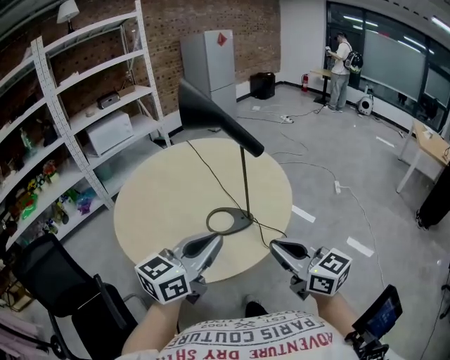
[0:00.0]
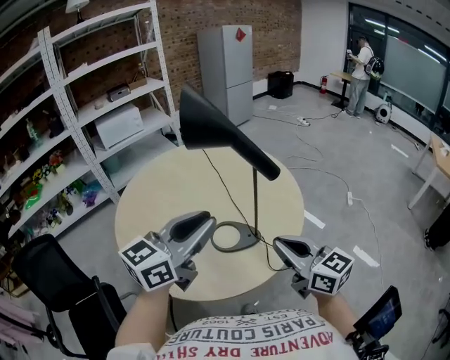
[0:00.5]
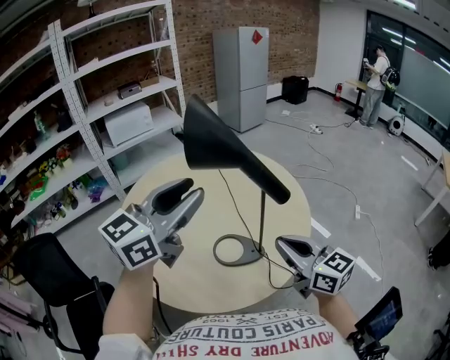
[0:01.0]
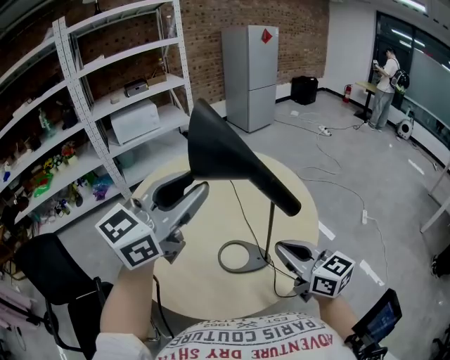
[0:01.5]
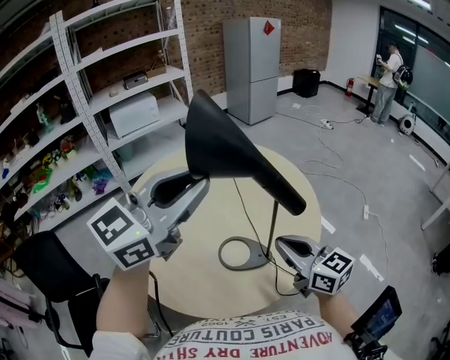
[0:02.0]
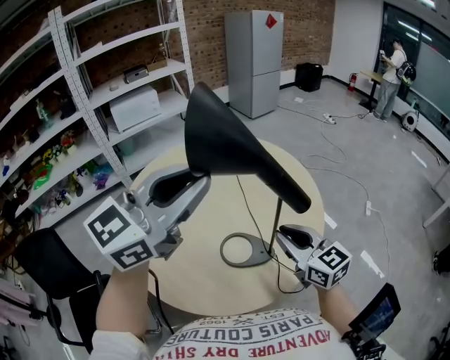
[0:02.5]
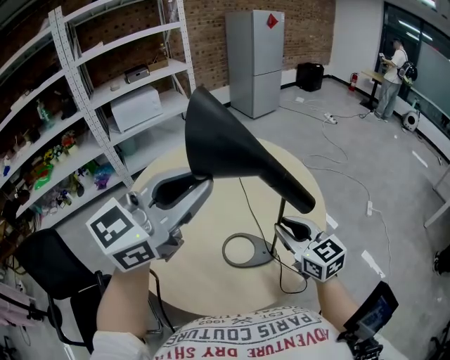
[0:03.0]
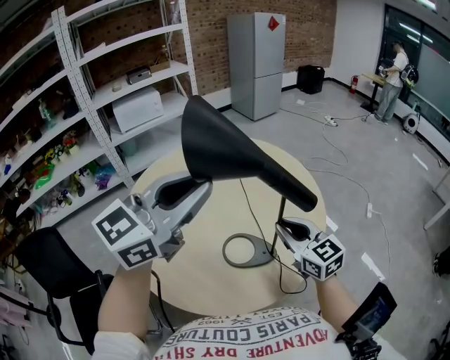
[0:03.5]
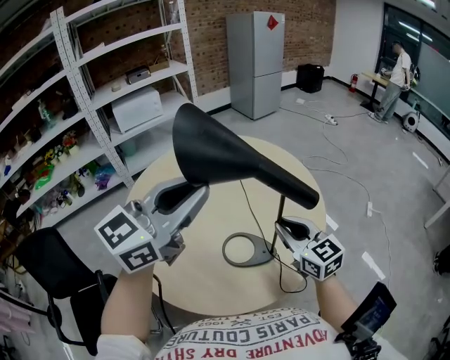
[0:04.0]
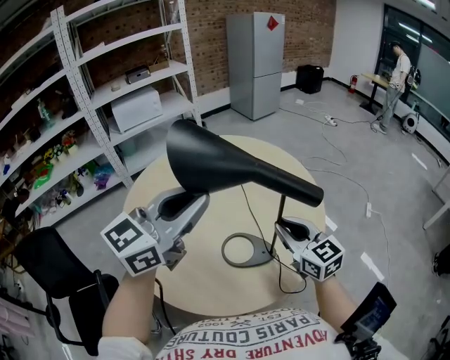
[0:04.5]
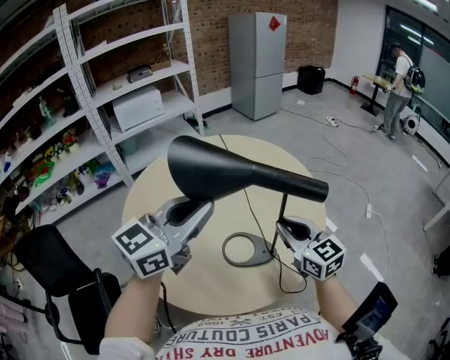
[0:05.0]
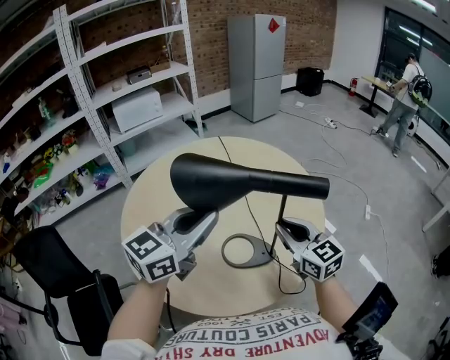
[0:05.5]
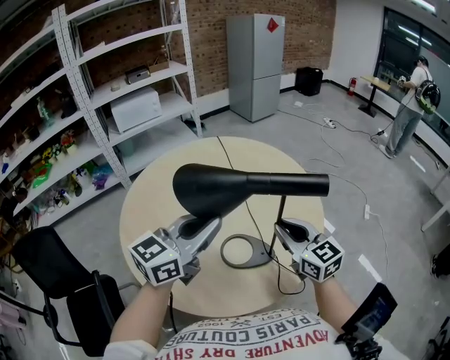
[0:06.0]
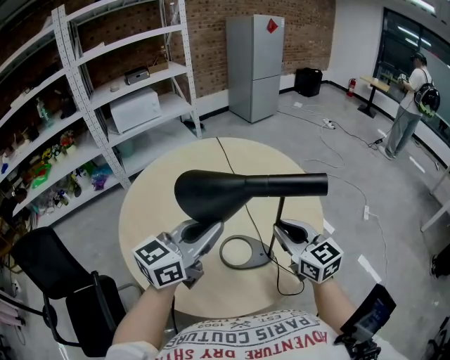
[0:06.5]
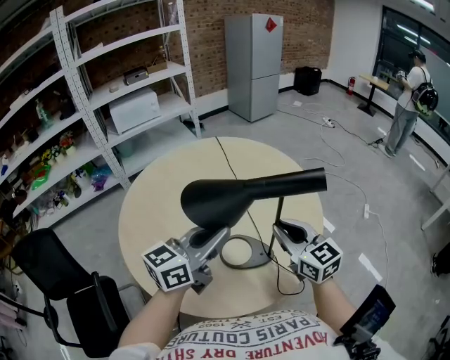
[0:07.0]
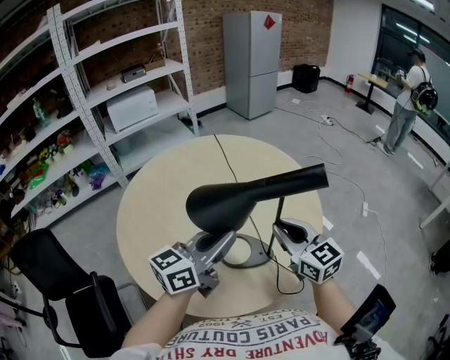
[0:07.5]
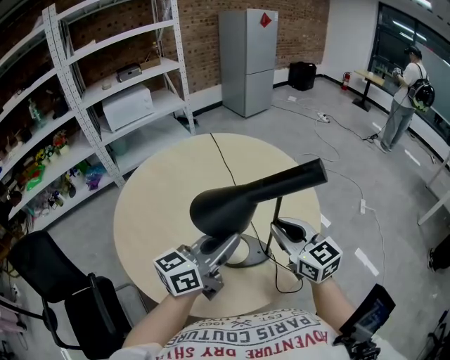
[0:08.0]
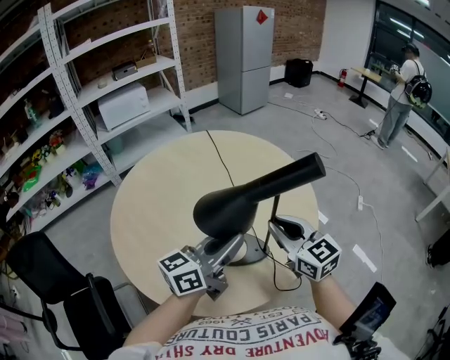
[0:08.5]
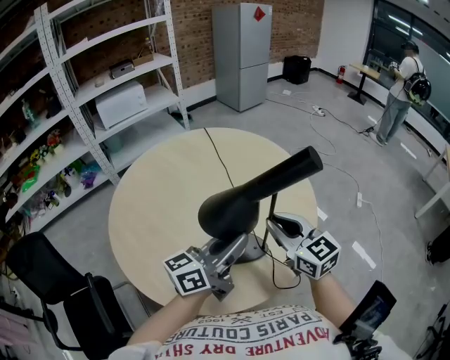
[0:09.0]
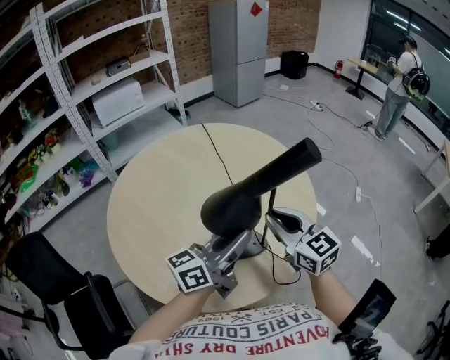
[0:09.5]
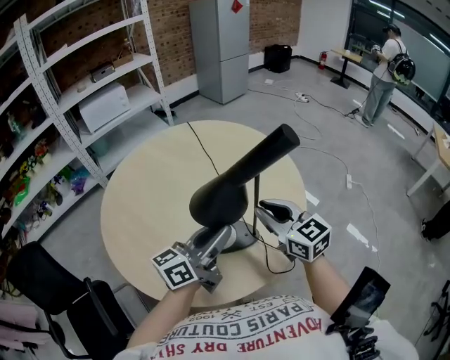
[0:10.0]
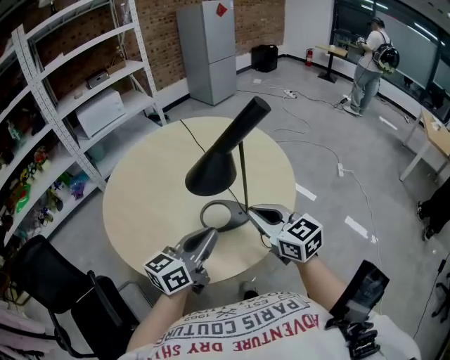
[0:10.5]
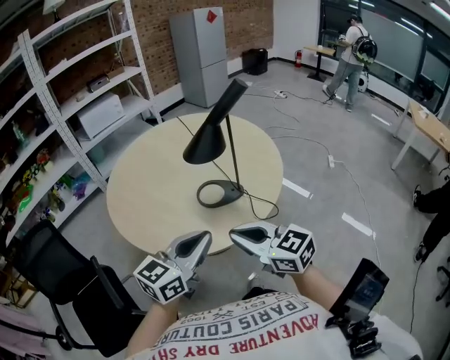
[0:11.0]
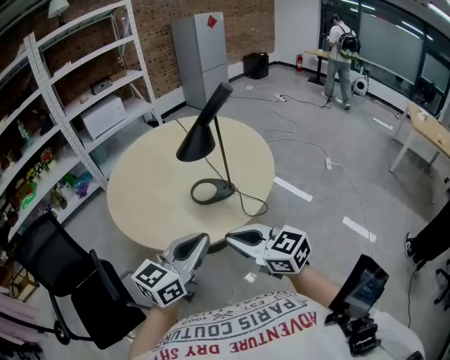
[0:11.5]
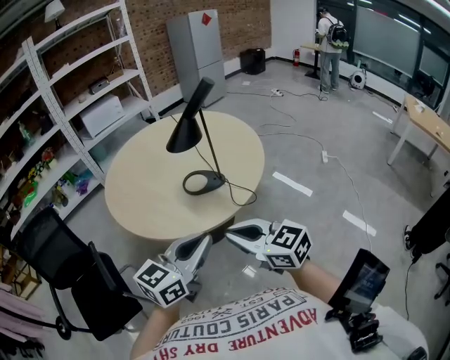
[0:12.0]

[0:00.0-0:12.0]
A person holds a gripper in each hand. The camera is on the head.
0:00.0 to 0:02.0: The right gripper shifts approximately 20 cm forward; the left gripper travels forward and upward by roughly 25 cm, and swivels approximately 20 degrees.
0:02.0 to 0:04.0: The right gripper shifts approximately 5 cm forward.
0:04.0 to 0:06.0: The left gripper goes some 10 cm downward.
0:06.0 to 0:08.0: The left gripper moves approximately 5 cm.
0:08.0 to 0:10.0: There are only small adjustments of the grippers.
0:10.0 to 0:12.0: Both grippers travel together backward, some 35 cm. The left gripper turns by approximately 30 degrees, and closes its fingers.

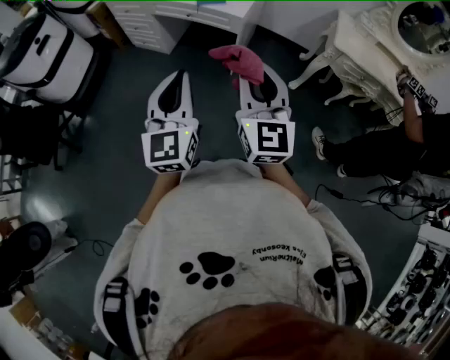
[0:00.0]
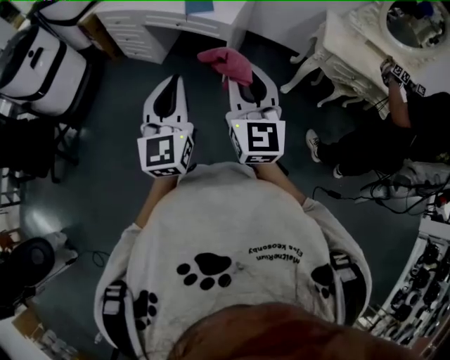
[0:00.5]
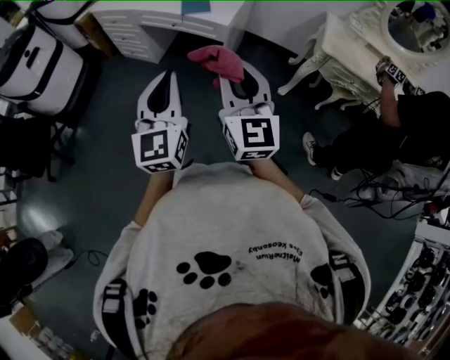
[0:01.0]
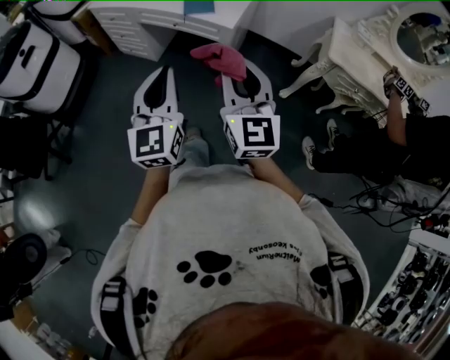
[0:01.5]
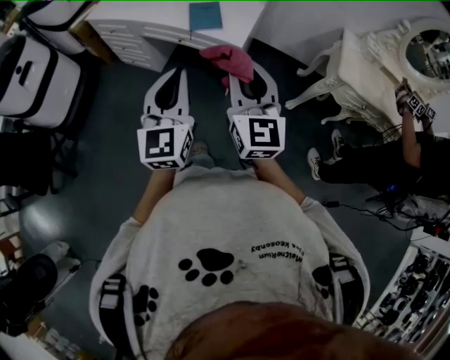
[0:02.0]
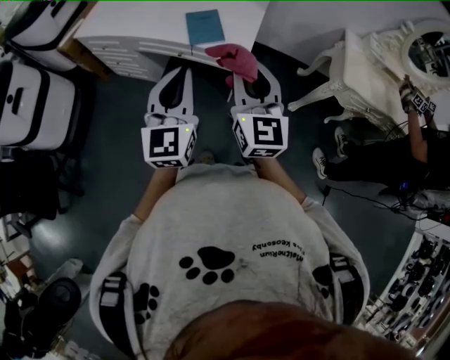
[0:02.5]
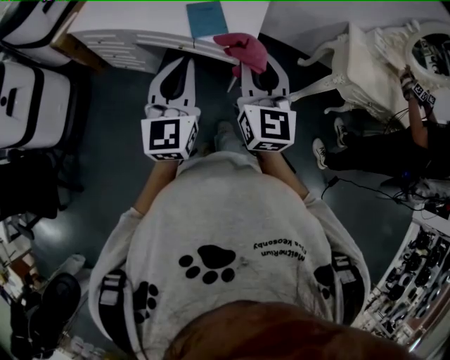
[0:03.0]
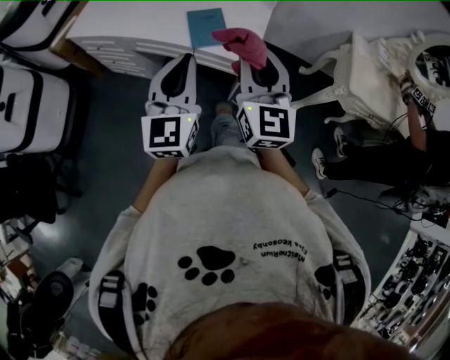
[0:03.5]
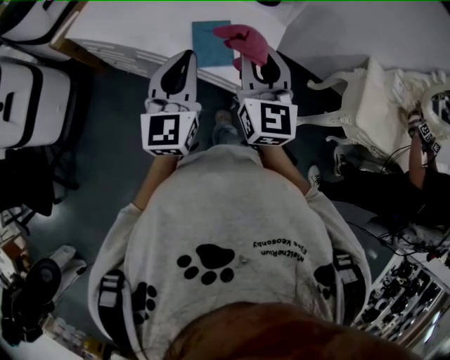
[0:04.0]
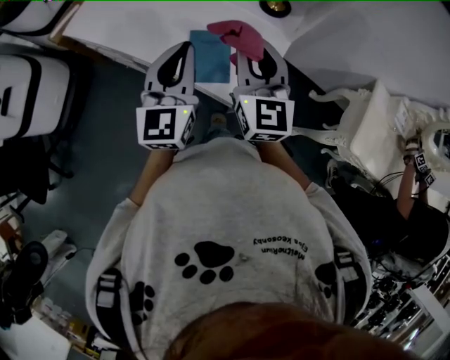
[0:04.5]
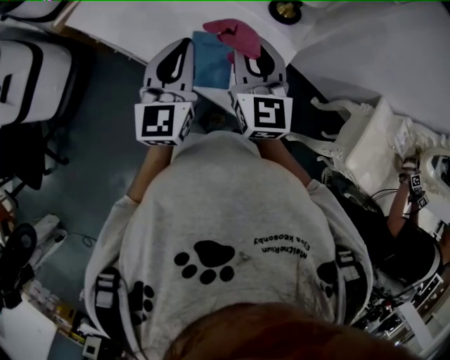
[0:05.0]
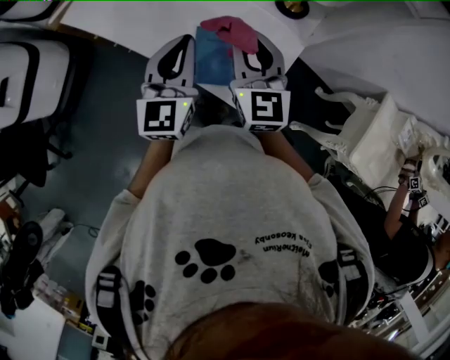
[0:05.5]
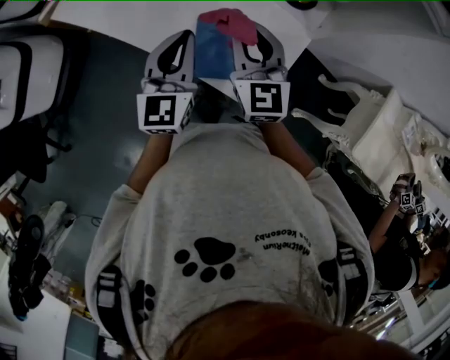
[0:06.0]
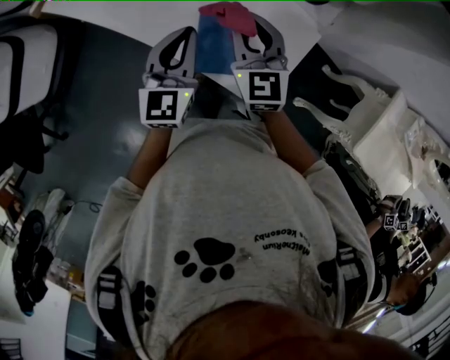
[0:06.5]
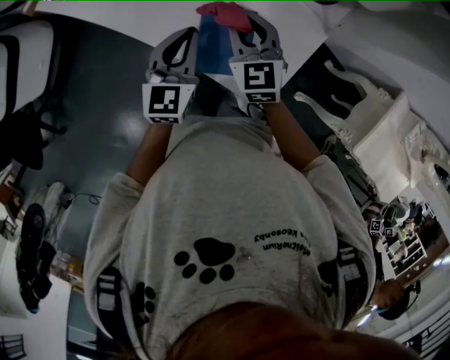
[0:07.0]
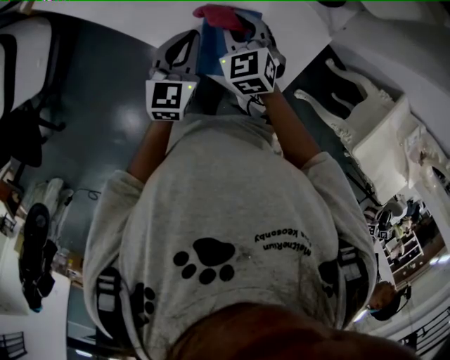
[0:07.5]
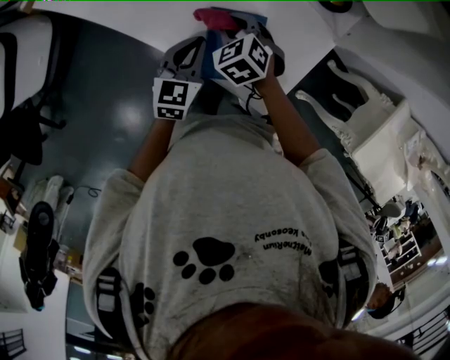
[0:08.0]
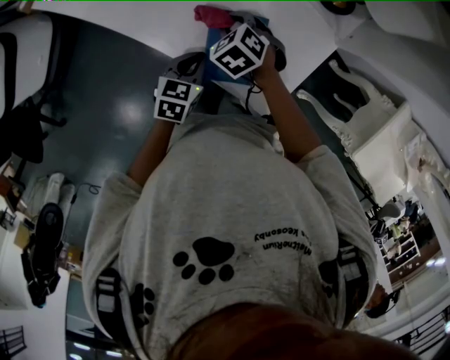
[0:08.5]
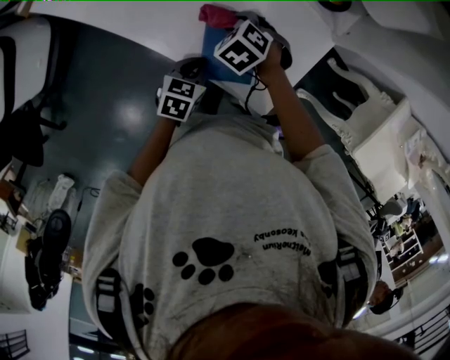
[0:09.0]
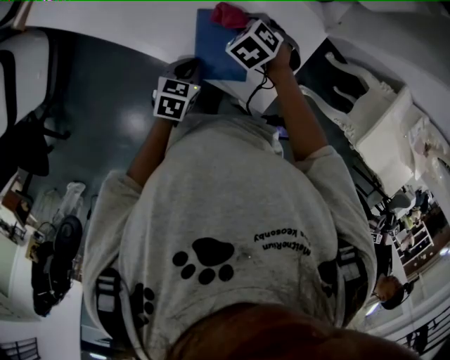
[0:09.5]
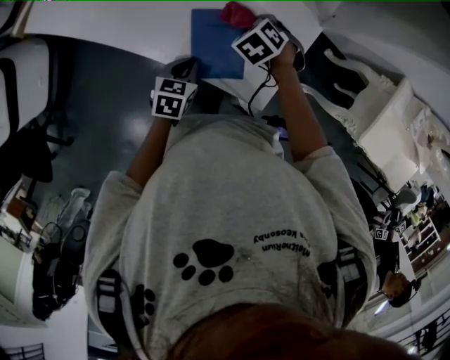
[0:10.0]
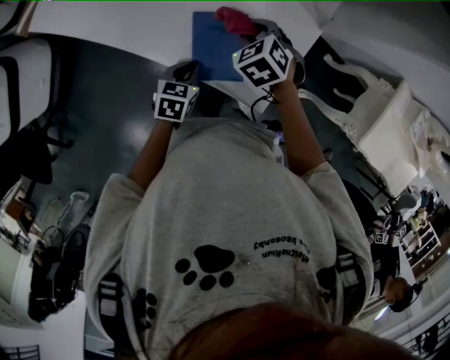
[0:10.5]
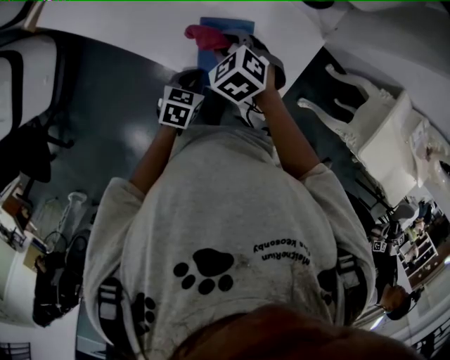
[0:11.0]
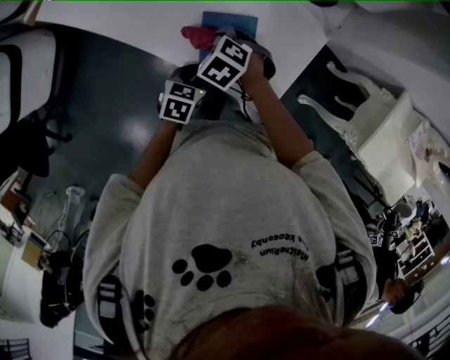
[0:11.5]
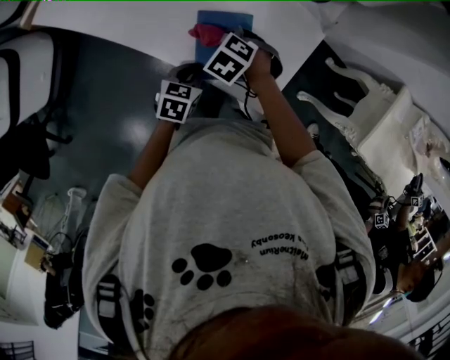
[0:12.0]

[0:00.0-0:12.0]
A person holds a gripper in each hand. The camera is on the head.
0:00.0 to 0:02.0: The two grippers go about 25 cm forward.
0:02.0 to 0:04.0: Both grippers move forward, about 35 cm.
0:04.0 to 0:06.0: The two grippers go some 20 cm forward and downward.
0:06.0 to 0:08.0: The grippers both shift downward by some 20 cm. The right gripper tilts its fingers some 50 degrees downward, while the left gripper changes its angle by approximately 20 degrees.
0:08.0 to 0:10.0: The right gripper moves some 10 cm. The left gripper goes approximately 10 cm downward, and swivels roughly 30 degrees.
0:10.0 to 0:12.0: The right gripper shifts by some 10 cm.

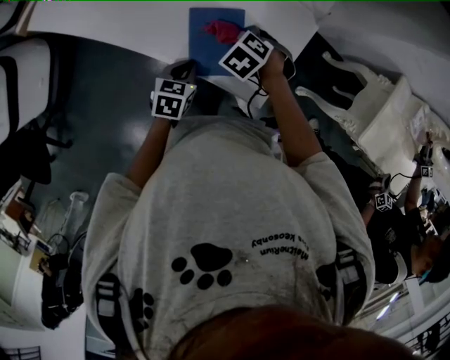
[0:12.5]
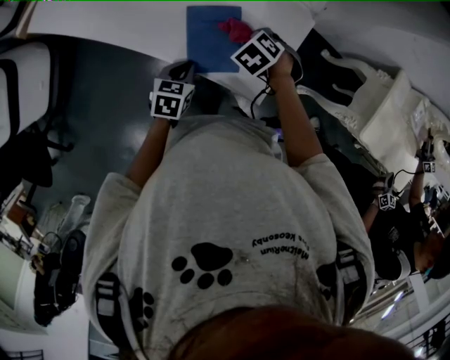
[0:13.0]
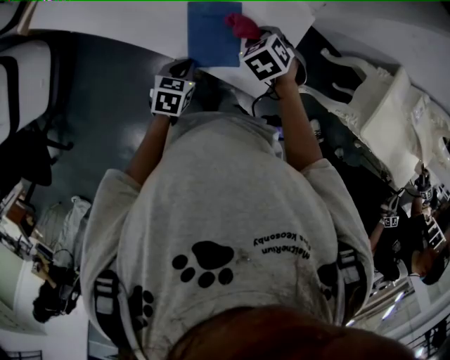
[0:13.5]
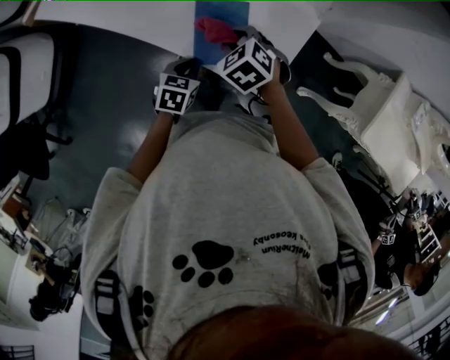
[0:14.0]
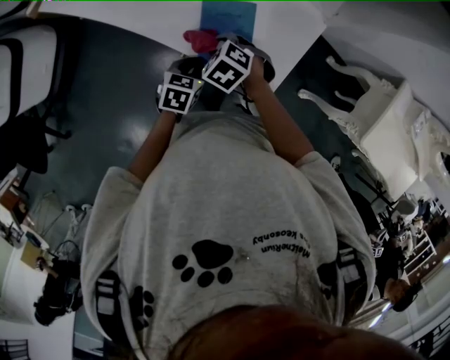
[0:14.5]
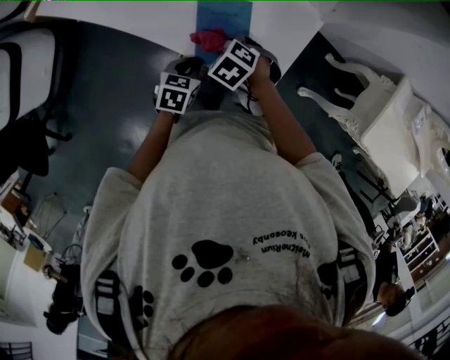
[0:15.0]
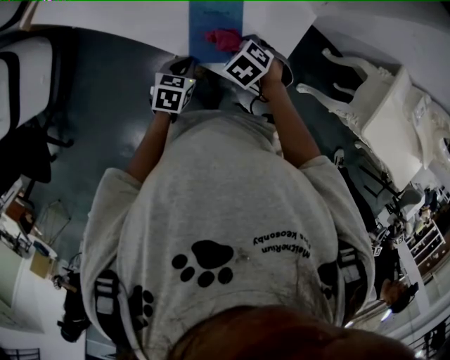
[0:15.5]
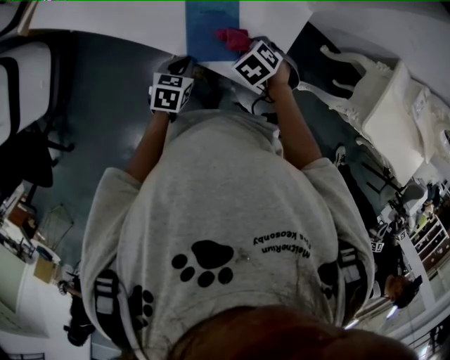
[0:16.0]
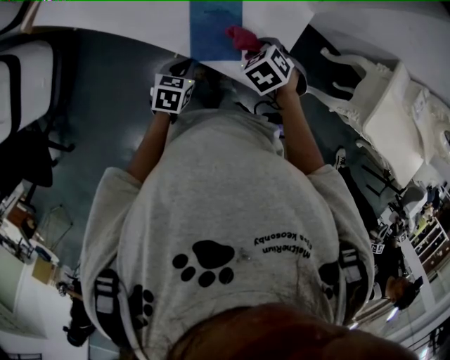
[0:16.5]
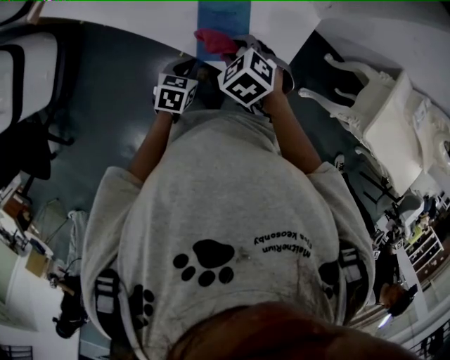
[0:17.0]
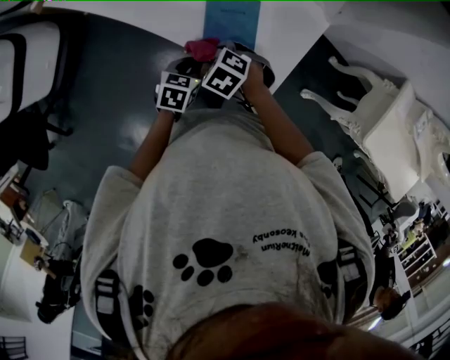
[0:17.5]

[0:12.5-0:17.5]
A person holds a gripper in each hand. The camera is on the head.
0:12.5 to 0:15.0: The right gripper ends up some 10 cm from where it was.
